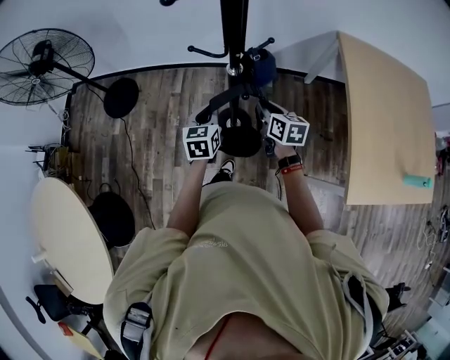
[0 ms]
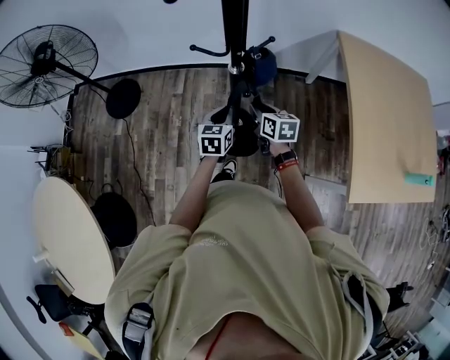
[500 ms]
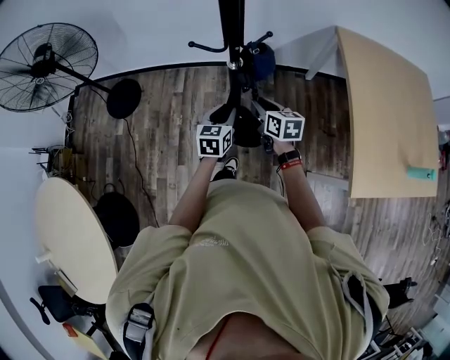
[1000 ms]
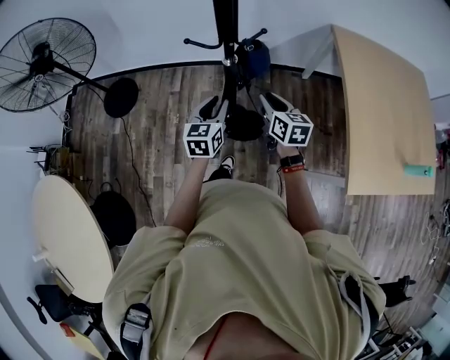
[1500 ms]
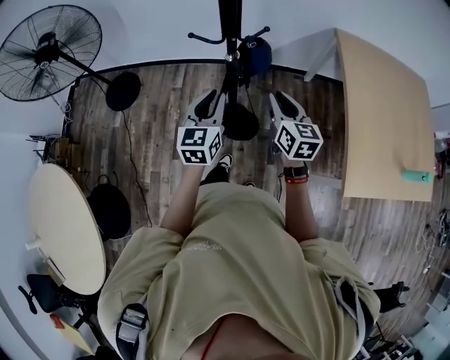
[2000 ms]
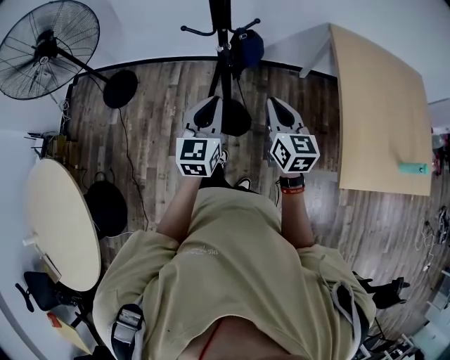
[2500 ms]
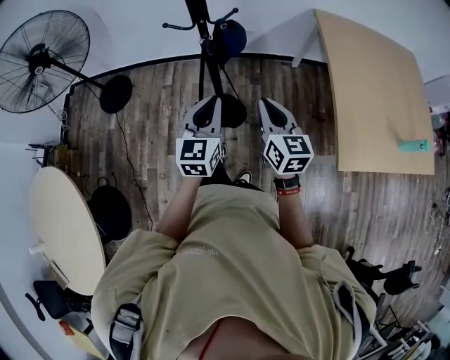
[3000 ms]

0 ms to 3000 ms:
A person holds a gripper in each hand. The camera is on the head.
0 ms to 1500 ms: The left gripper moves approximately 5 cm, and opens up. The right gripper moves some 5 cm.
1500 ms to 3000 ms: The right gripper shifts roughly 20 cm backward and upward, and closes, while the left gripper travels backward, upward and to the right by about 20 cm, and closes.

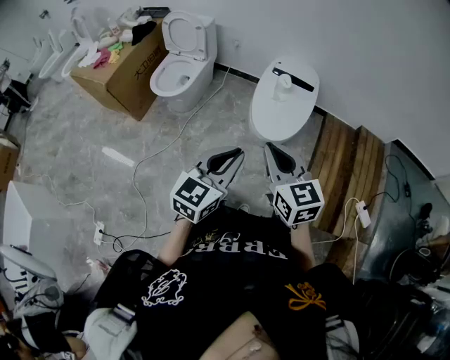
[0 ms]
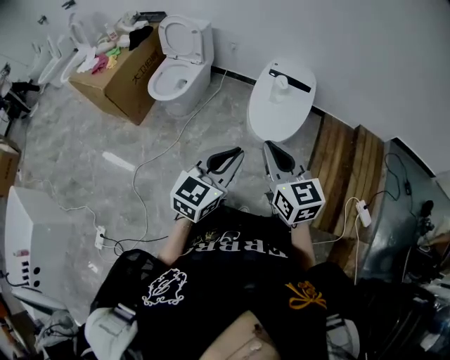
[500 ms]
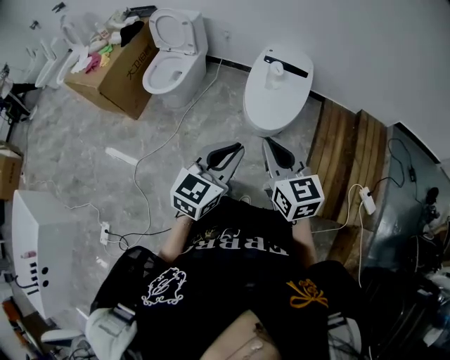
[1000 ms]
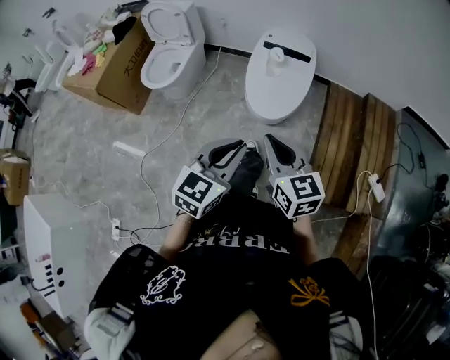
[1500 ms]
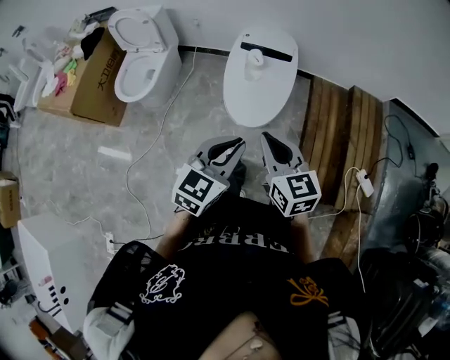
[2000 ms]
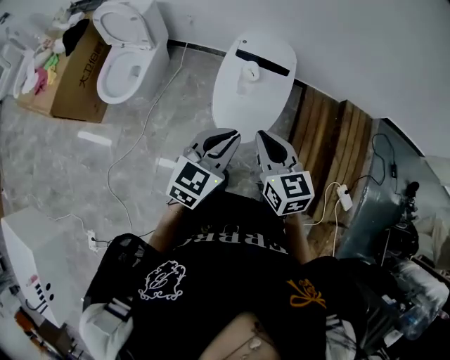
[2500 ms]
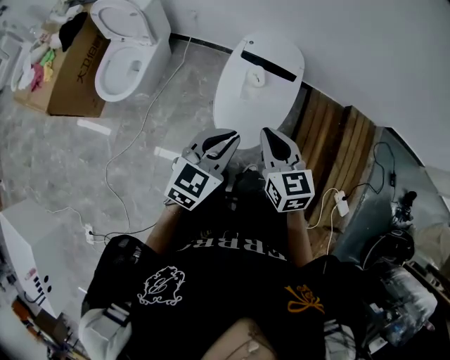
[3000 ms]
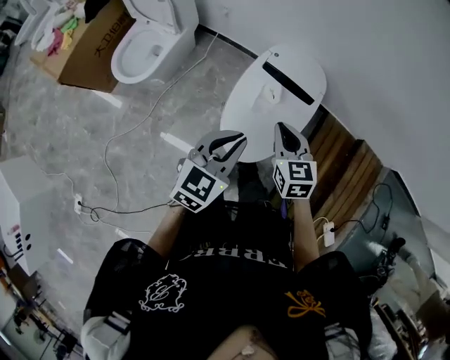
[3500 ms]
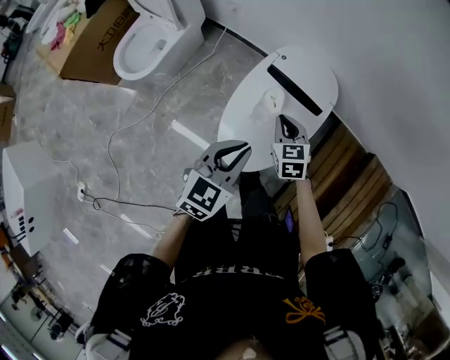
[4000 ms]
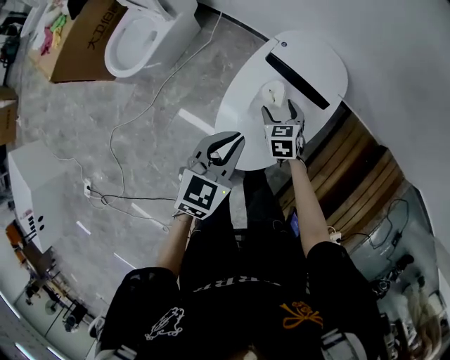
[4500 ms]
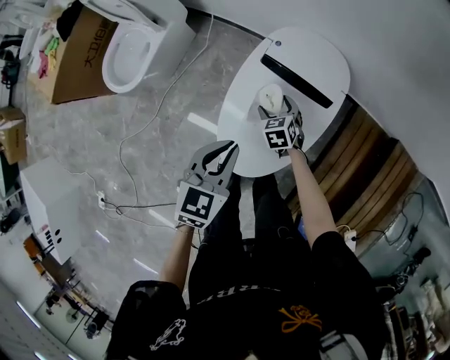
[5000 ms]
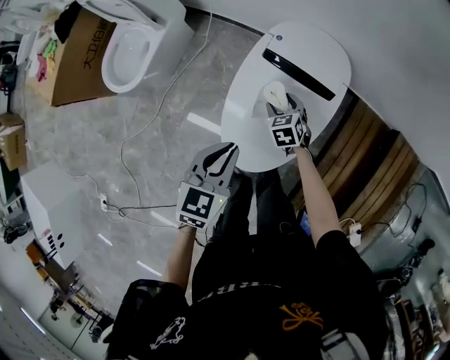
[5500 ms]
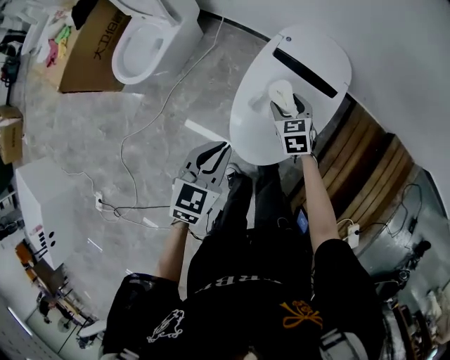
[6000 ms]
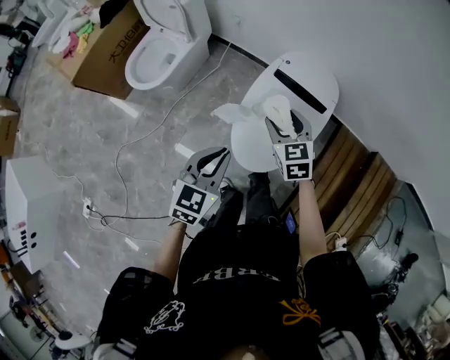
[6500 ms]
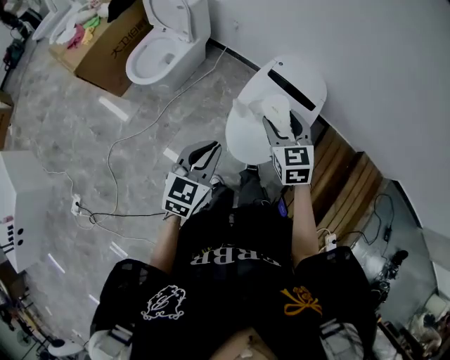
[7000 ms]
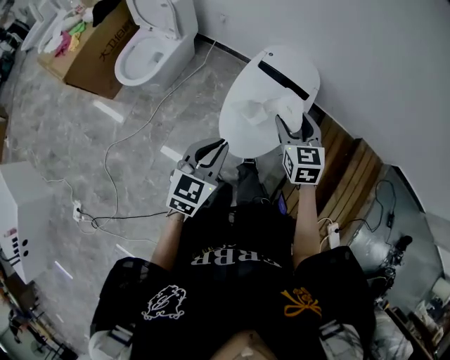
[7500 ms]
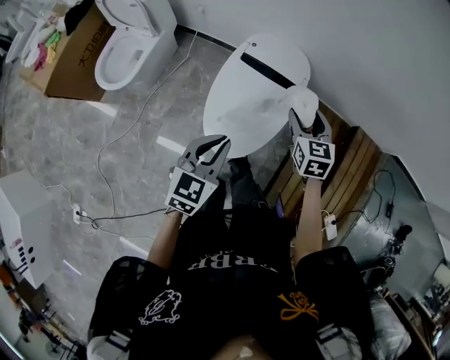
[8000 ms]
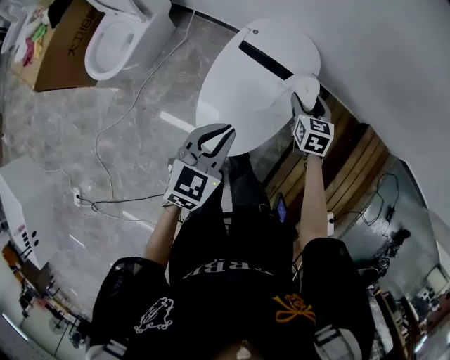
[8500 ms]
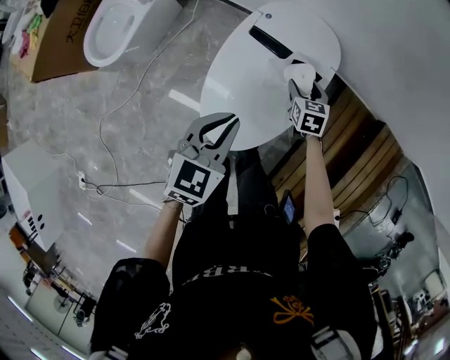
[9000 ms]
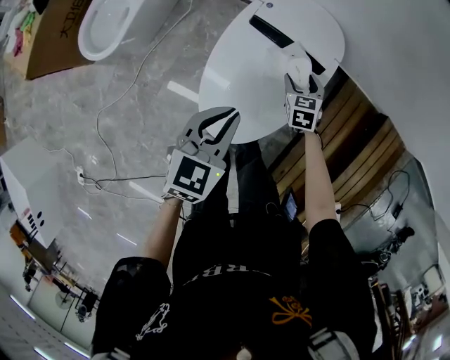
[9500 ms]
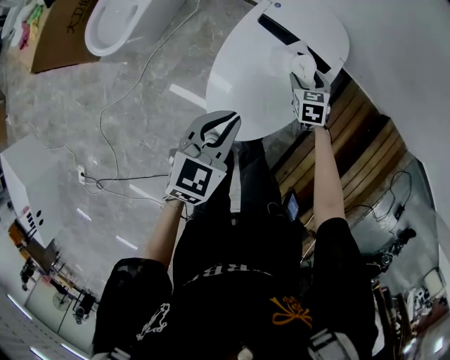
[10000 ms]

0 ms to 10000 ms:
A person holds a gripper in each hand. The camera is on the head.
0 ms to 2000 ms: The left gripper is displaced forward and to the right by some 20 cm. Meanwhile the right gripper moves forward, to the right and downward, some 20 cm.
2000 ms to 4000 ms: The left gripper is displaced forward by about 35 cm, and rotates approximately 20 degrees. Meanwhile the right gripper goes about 50 cm forward and downward, and rotates about 30 degrees.
4000 ms to 6000 ms: The left gripper shifts approximately 10 cm to the left and downward. The right gripper goes approximately 10 cm downward, and opens its fingers.
6000 ms to 8000 ms: The left gripper shifts some 10 cm upward and to the right, and moves roughly 15 cm backward and comes back. Meanwhile the right gripper is displaced upward and to the right by roughly 25 cm.
8000 ms to 10000 ms: The right gripper is displaced downward by some 30 cm, while the left gripper heads downward and forward, covering some 15 cm.

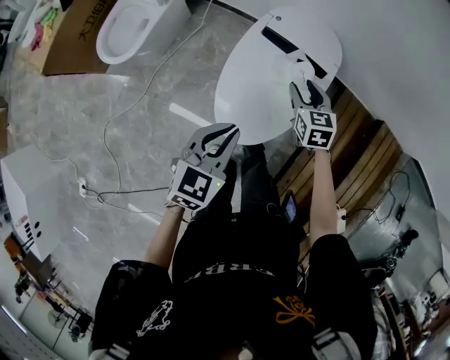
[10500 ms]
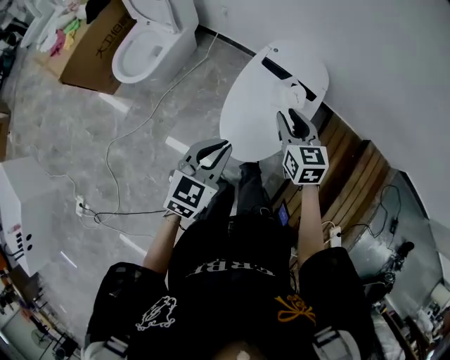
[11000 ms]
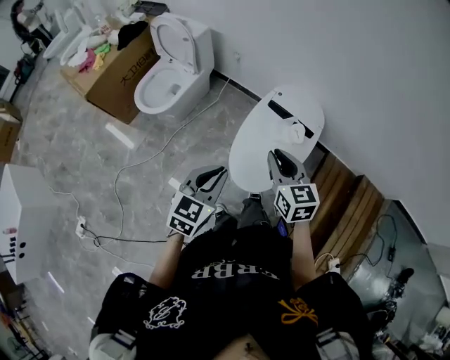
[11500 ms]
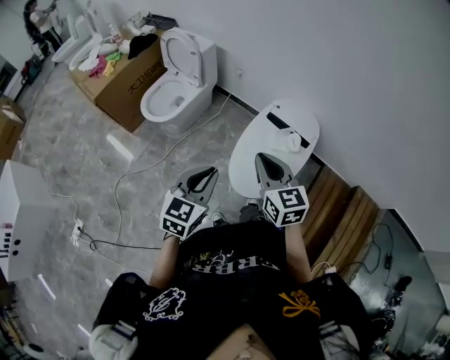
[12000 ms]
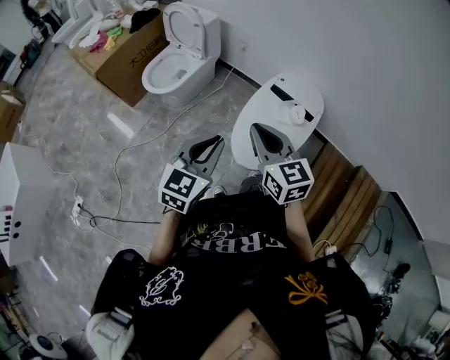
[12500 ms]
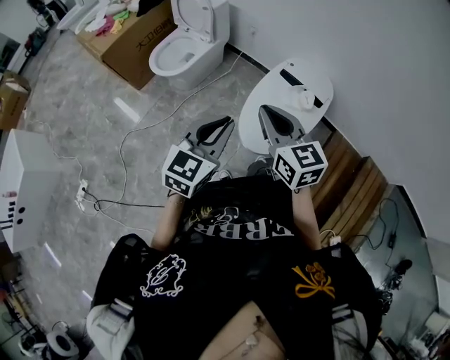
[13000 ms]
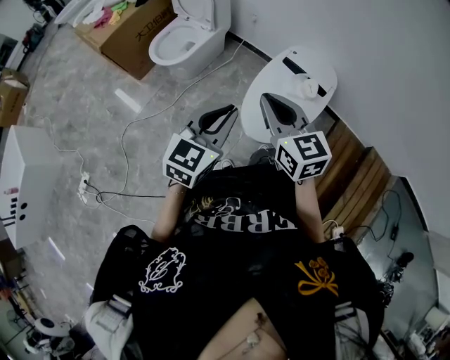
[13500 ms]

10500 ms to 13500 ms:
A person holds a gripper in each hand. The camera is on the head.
10500 ms to 12000 ms: The left gripper moves upward, backward and to the left, some 25 cm. Meanwhile the right gripper moves upward, backward and to the left, some 40 cm, changes its angle by approximately 30 degrees, and closes its fingers.
12000 ms to 13500 ms: The right gripper shifts approximately 5 cm backward. The left gripper shifts by approximately 5 cm.

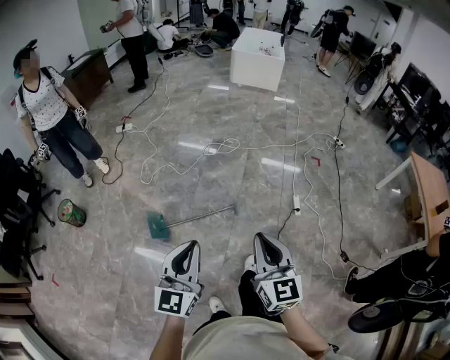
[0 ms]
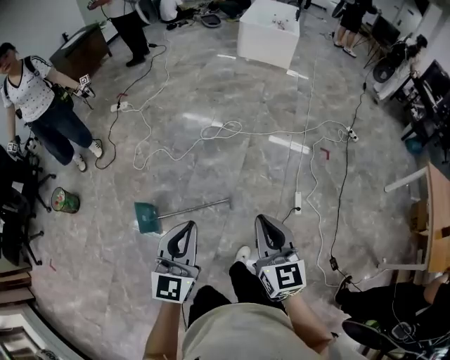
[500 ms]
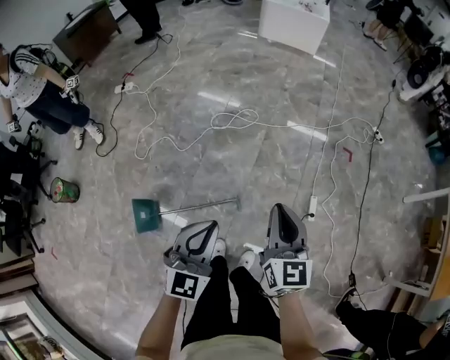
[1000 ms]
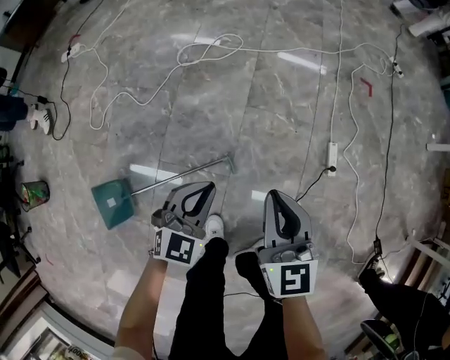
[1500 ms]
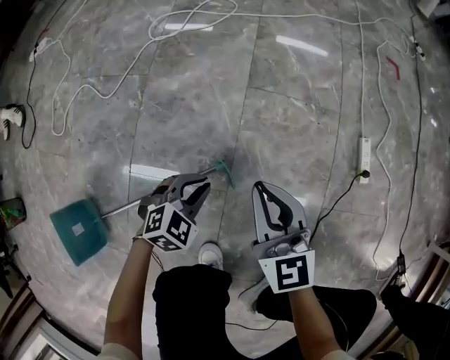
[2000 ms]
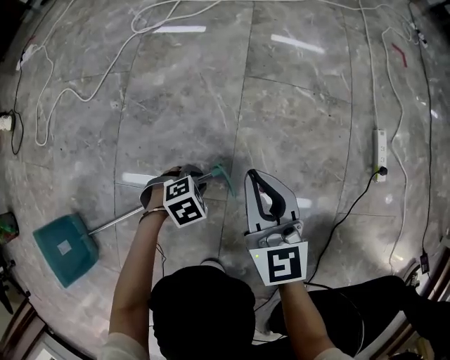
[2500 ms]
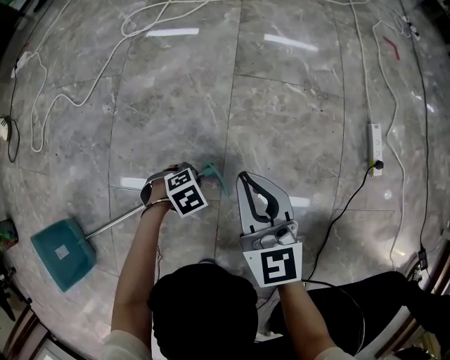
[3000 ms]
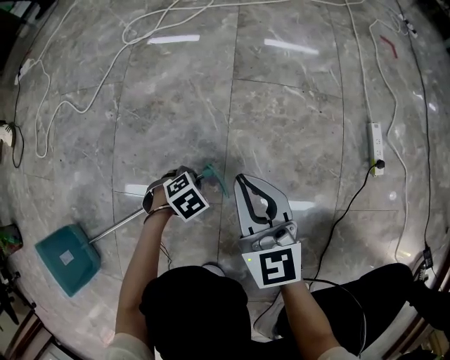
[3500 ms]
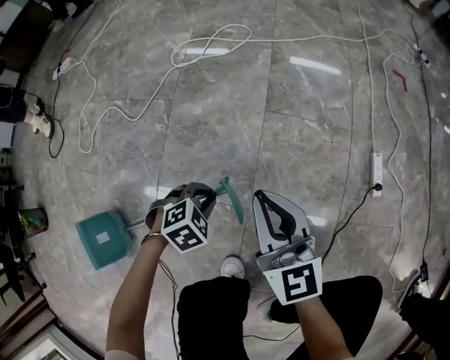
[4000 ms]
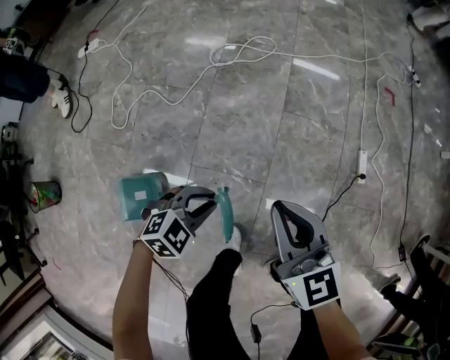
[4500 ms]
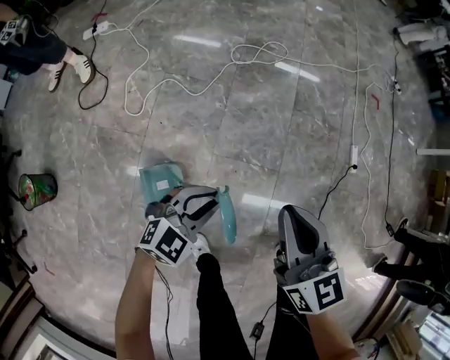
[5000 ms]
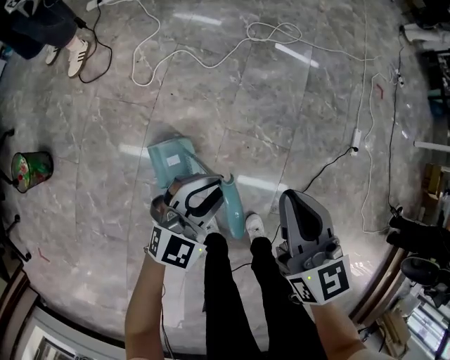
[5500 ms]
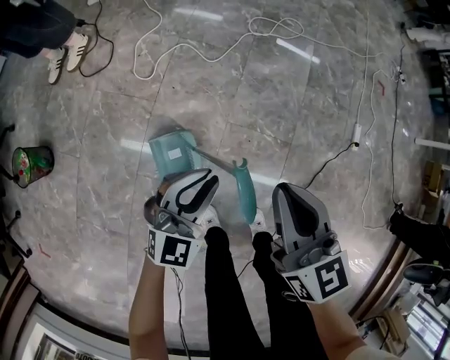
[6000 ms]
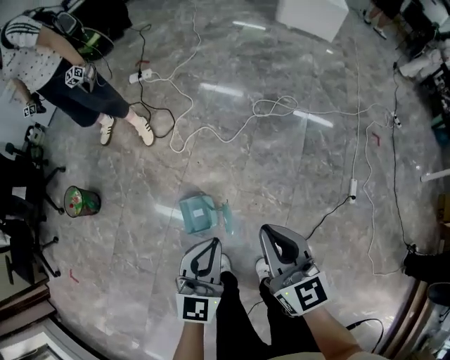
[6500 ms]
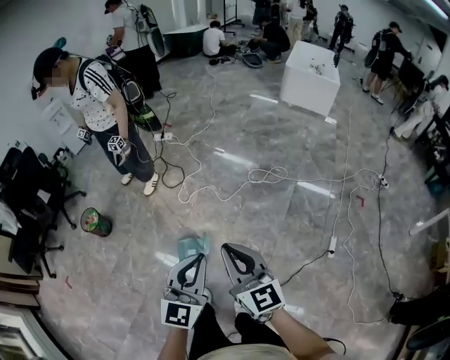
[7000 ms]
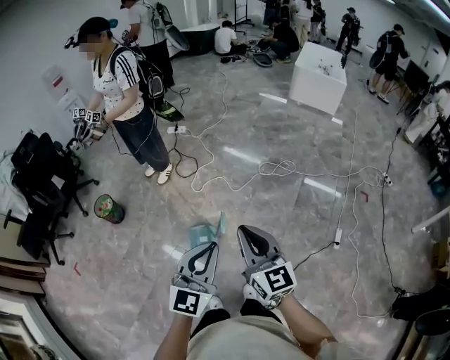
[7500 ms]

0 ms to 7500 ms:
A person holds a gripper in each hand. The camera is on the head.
0 ms to 2000 ms: The two grippers travel together, forward, approximately 50 cm. Both grippers move downward, approximately 90 cm. The left gripper angles its fingers downward, by some 50 degrees.
2000 ms to 4000 ms: The right gripper goes about 5 cm upward. The left gripper travels downward and back again, some 25 cm each way.
4000 ms to 5500 ms: The two grippers travel together, to the left and backward, some 50 cm. Both grippers move upward, about 35 cm. The left gripper angles its fingers upward, by approximately 60 degrees.
5500 ms to 7500 ms: Both grippers travel together upward, about 50 cm. The right gripper swivels roughly 30 degrees; the left gripper rotates some 40 degrees.

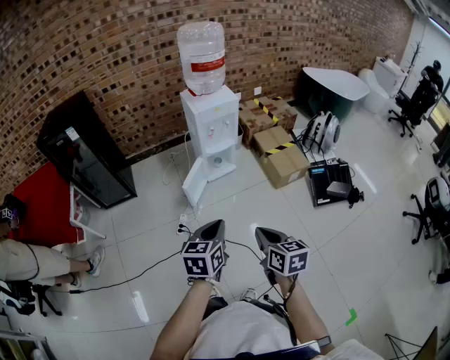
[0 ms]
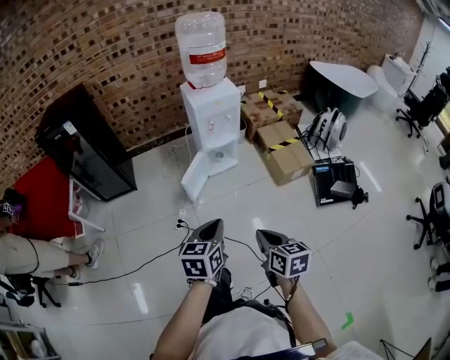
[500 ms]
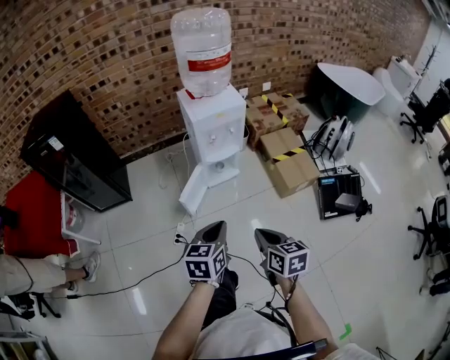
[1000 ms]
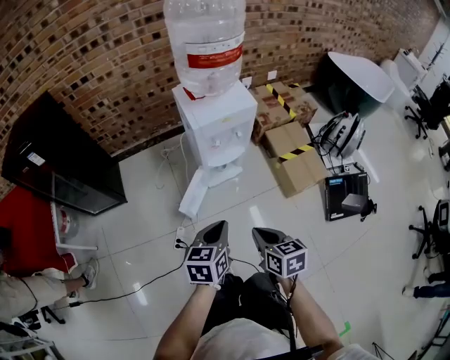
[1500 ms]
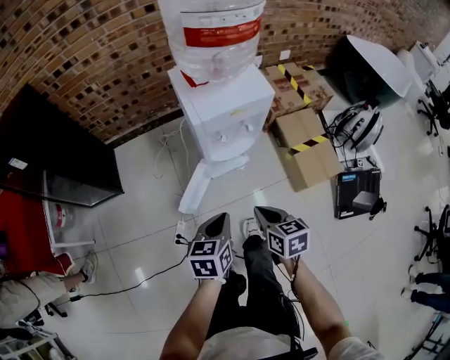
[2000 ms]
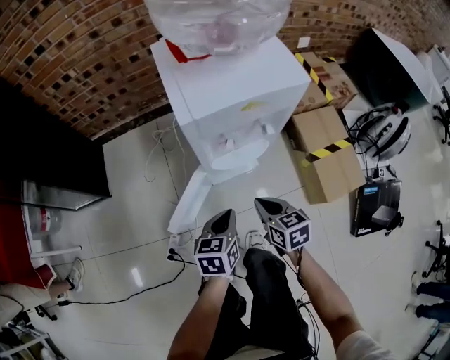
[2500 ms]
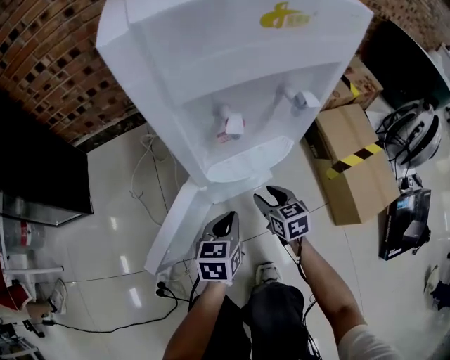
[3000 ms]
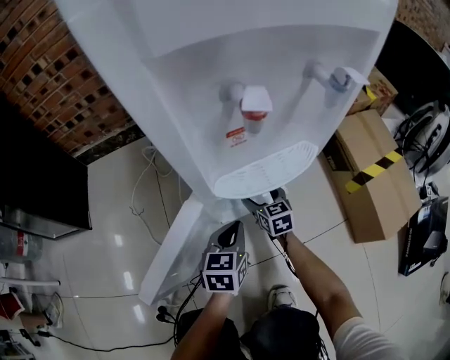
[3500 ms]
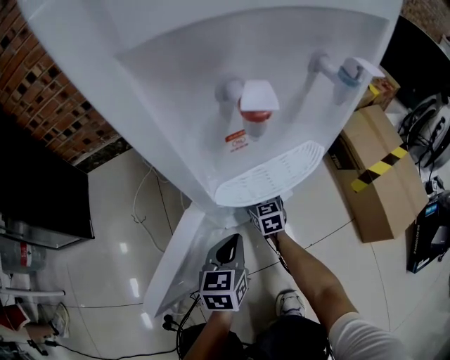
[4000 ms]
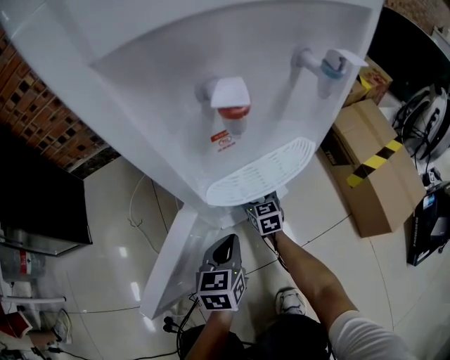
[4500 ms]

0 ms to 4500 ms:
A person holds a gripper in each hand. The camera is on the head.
0 ms to 2000 ms: Both grippers move forward and downward, approximately 40 cm.
2000 ms to 4500 ms: The grippers both shift downward and forward by approximately 60 cm. The right gripper changes its angle by about 20 degrees, and opens up.
